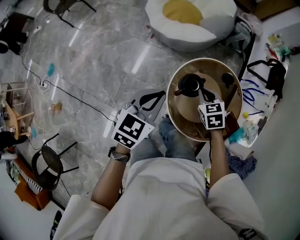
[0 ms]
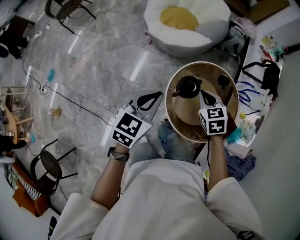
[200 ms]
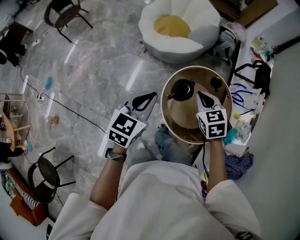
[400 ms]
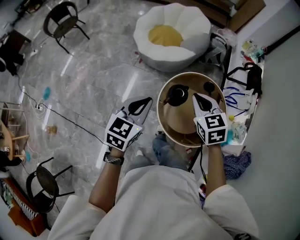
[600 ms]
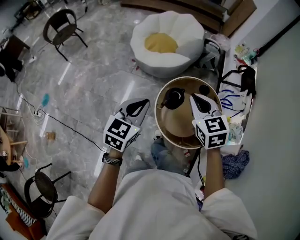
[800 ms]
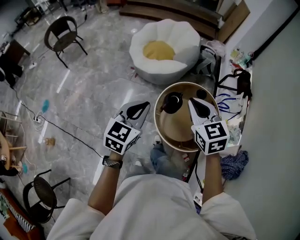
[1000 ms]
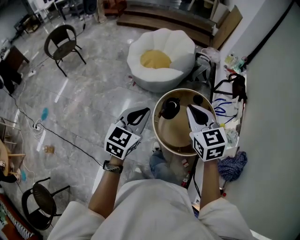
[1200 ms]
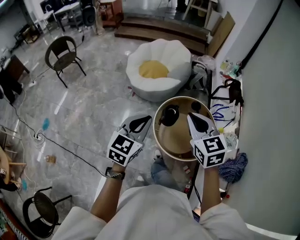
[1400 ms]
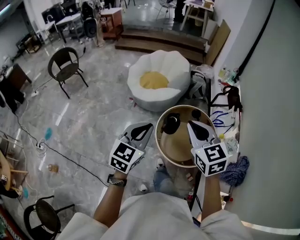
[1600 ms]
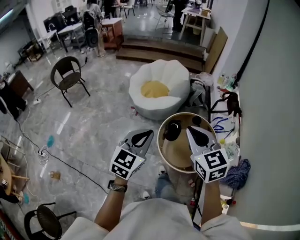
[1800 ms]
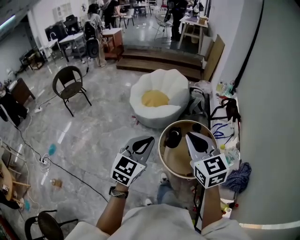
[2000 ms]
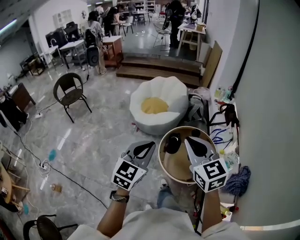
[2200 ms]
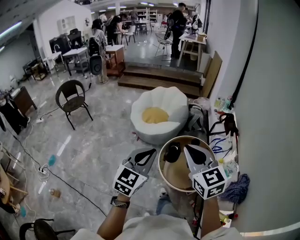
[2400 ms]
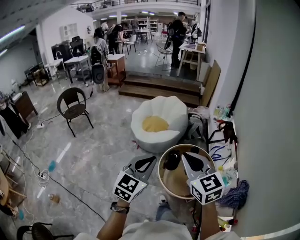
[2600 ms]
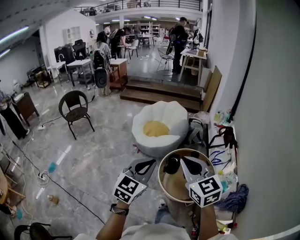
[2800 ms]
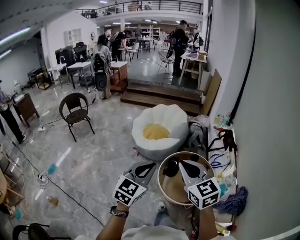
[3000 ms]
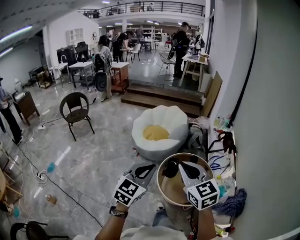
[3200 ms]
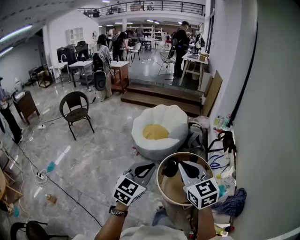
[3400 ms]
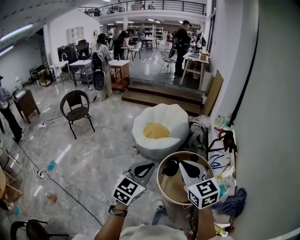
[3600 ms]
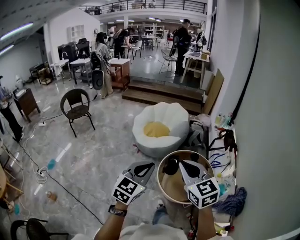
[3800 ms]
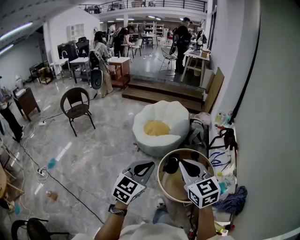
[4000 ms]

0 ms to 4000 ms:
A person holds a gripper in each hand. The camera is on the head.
0 ms to 1400 ms: The right gripper travels upward and backward by roughly 40 cm, and rotates roughly 30 degrees. Meanwhile the left gripper goes approximately 25 cm upward and backward.
1400 ms to 2600 ms: Both grippers travel together backward and upward, some 15 cm.
2600 ms to 4000 ms: The grippers make only small movements.

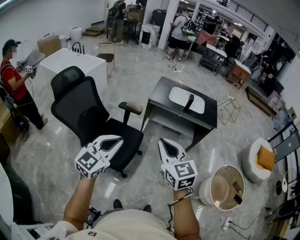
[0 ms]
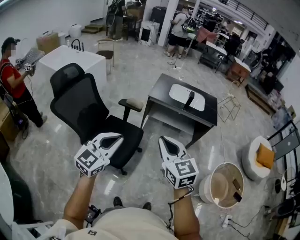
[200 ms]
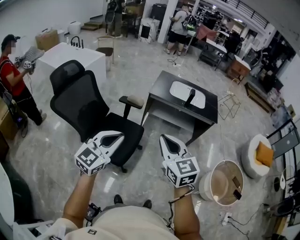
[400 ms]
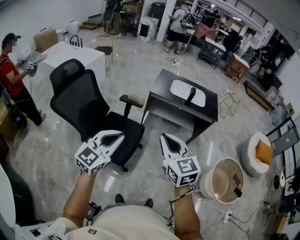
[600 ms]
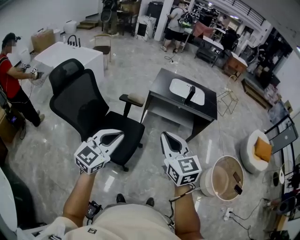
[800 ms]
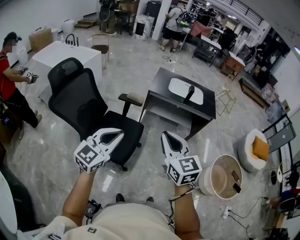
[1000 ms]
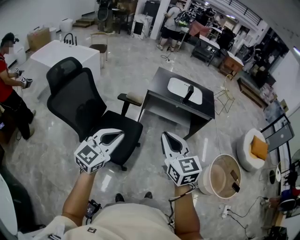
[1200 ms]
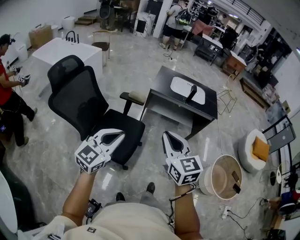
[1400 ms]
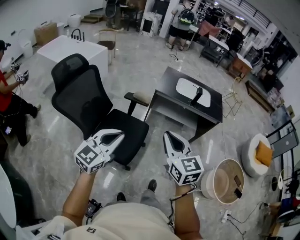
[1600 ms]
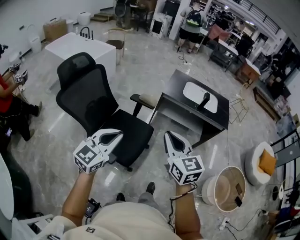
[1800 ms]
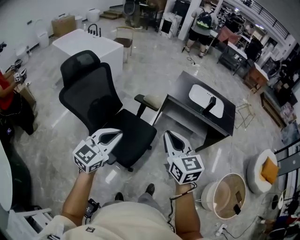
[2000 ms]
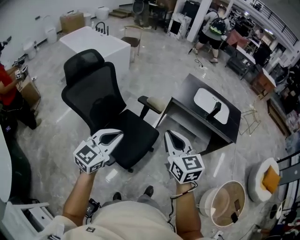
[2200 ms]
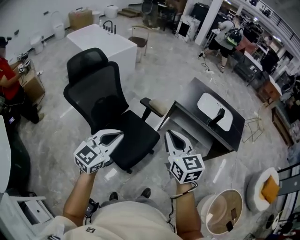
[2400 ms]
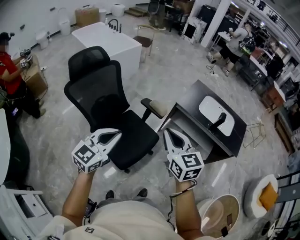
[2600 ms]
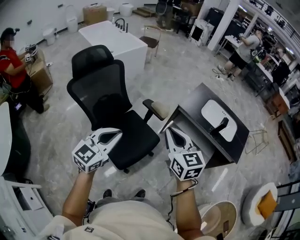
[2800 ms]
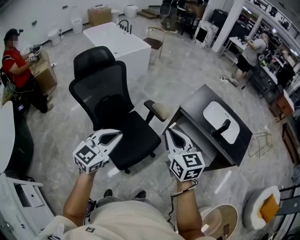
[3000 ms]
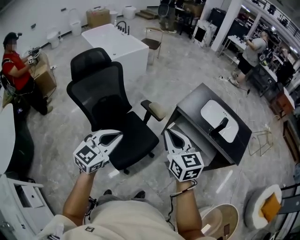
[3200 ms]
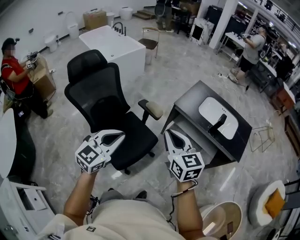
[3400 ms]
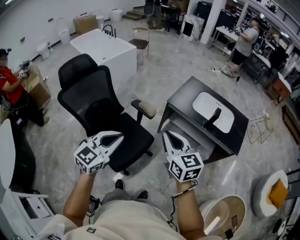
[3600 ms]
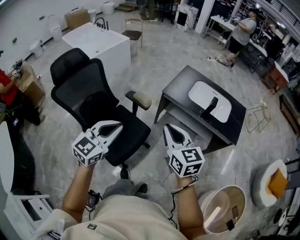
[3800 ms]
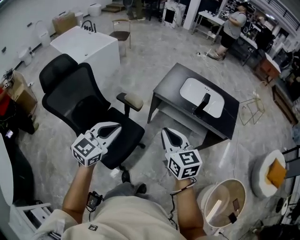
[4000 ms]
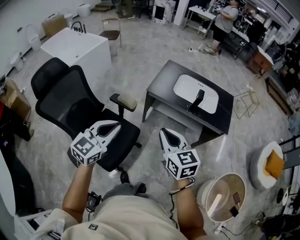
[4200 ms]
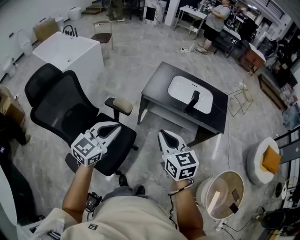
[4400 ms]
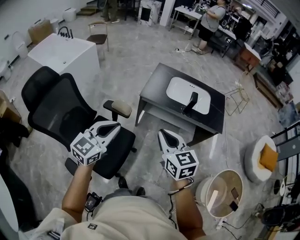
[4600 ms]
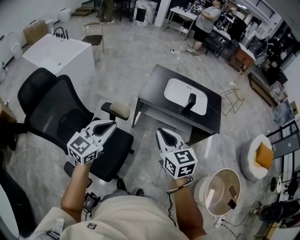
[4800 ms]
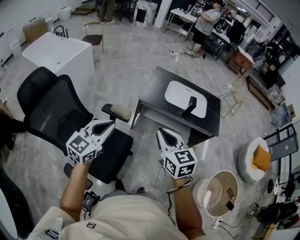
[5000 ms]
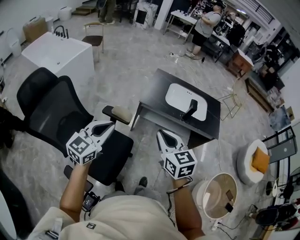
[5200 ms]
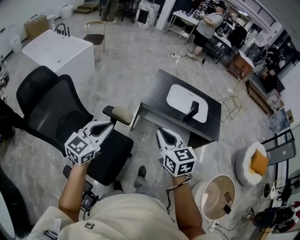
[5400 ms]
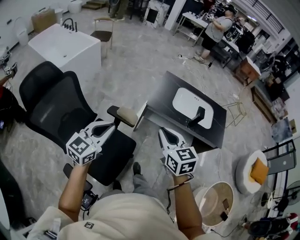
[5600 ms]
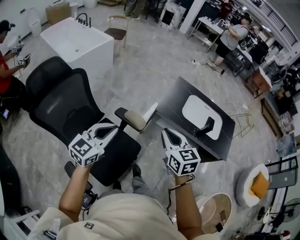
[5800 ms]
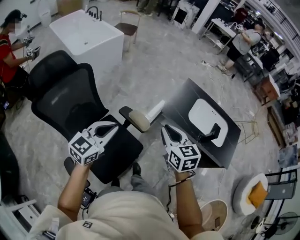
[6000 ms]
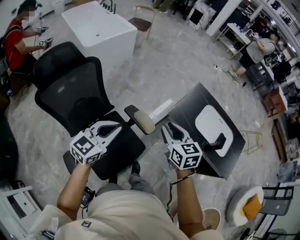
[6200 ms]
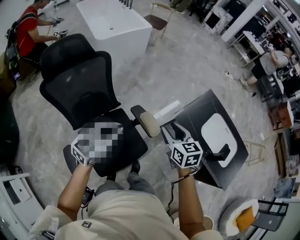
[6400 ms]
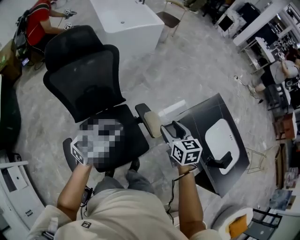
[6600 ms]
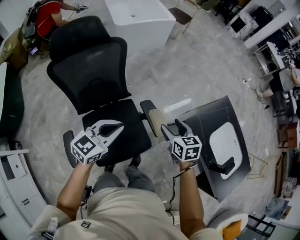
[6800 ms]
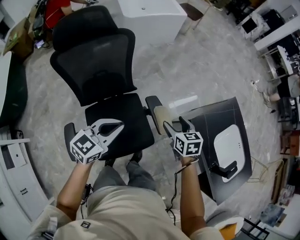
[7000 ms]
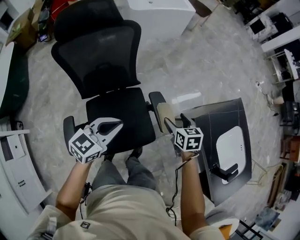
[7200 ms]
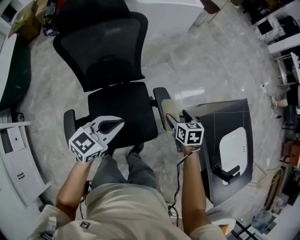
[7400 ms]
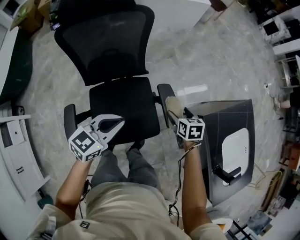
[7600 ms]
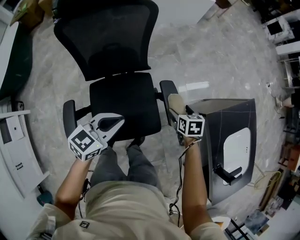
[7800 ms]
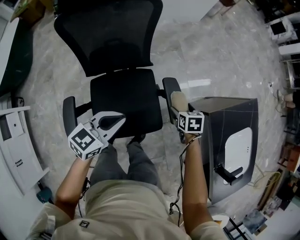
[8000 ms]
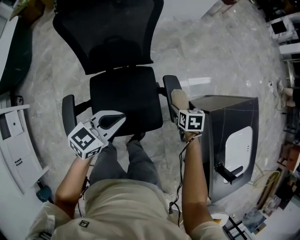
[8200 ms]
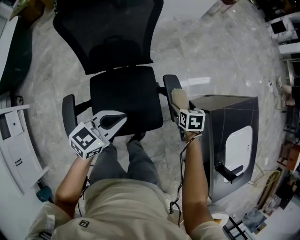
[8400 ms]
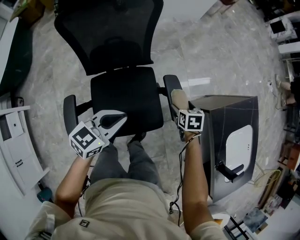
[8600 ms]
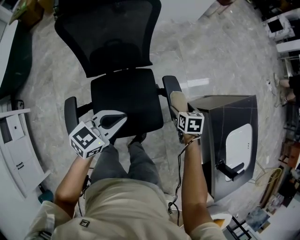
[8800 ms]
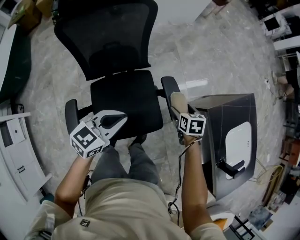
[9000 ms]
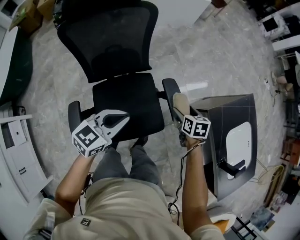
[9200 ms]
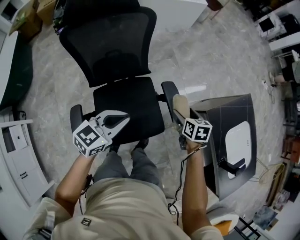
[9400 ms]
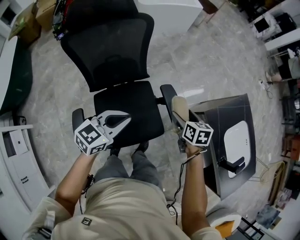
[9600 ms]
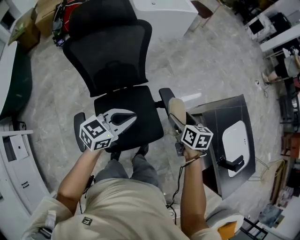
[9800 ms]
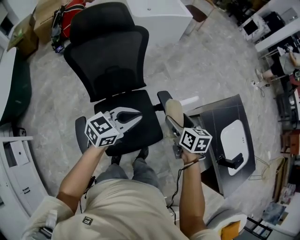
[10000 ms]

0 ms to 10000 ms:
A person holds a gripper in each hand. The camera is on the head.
0 ms to 1400 ms: The grippers both shift to the left by approximately 5 cm.
1400 ms to 2800 ms: The right gripper changes place by some 20 cm, and changes its angle by about 20 degrees, while the left gripper shifts by approximately 15 cm, and swivels about 30 degrees.
2800 ms to 4200 ms: The left gripper goes some 20 cm to the right and forward. Meanwhile the right gripper moves to the right, roughly 15 cm.
4200 ms to 5800 ms: The left gripper shifts about 20 cm to the left and forward, while the right gripper shifts about 20 cm forward and to the left.
5800 ms to 7200 ms: The right gripper goes approximately 25 cm downward, turns by roughly 40 degrees, and opens up; the left gripper is displaced downward by some 15 cm, and rotates approximately 30 degrees.
7200 ms to 8600 ms: The right gripper heads downward, covering roughly 10 cm. Meanwhile the left gripper is displaced downward by some 5 cm.
8600 ms to 10000 ms: The left gripper goes about 10 cm upward; the right gripper travels upward by about 20 cm, and swivels roughly 30 degrees.

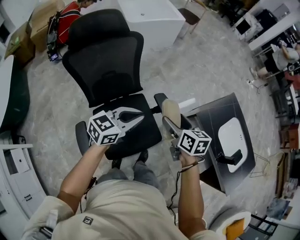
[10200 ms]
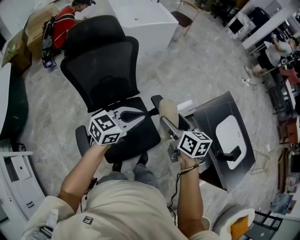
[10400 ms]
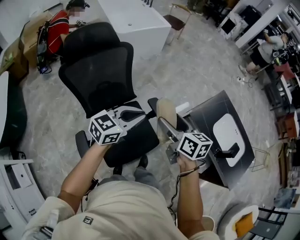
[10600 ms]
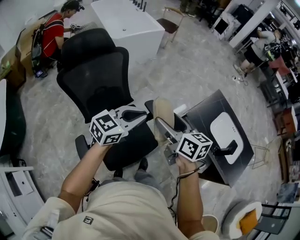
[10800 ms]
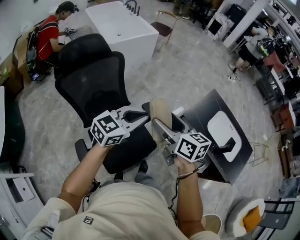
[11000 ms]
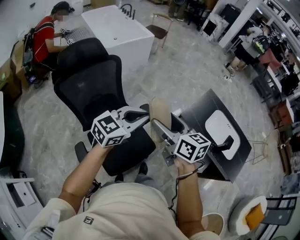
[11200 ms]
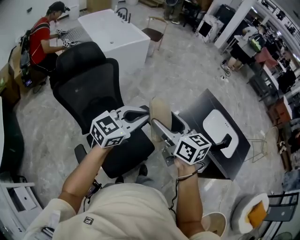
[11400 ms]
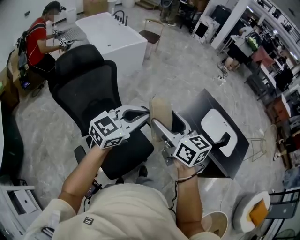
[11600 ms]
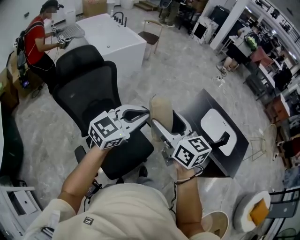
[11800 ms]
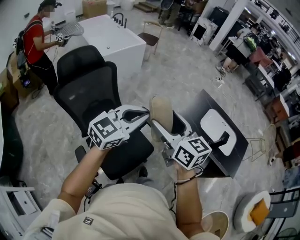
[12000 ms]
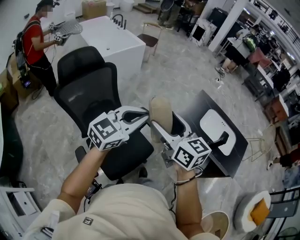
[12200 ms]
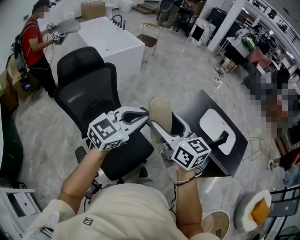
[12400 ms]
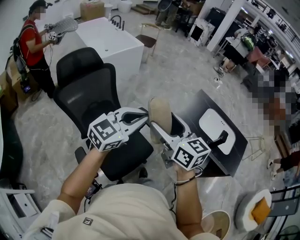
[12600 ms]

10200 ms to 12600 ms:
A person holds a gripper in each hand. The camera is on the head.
10200 ms to 11400 ms: The left gripper heads upward and to the right, covering about 15 cm, and changes its angle by roughly 20 degrees. The right gripper moves upward and backward, about 20 cm, and changes its angle by approximately 20 degrees.
11400 ms to 12600 ms: The left gripper moves roughly 5 cm, while the right gripper ends up some 5 cm from where it was.

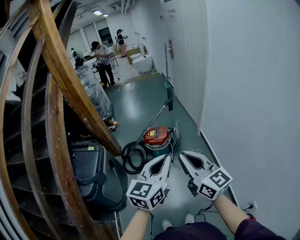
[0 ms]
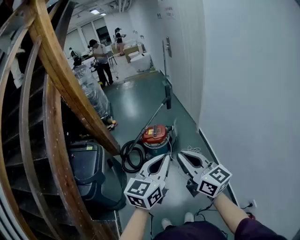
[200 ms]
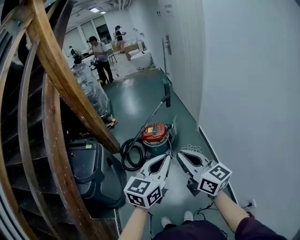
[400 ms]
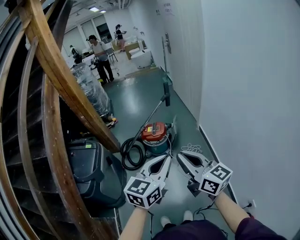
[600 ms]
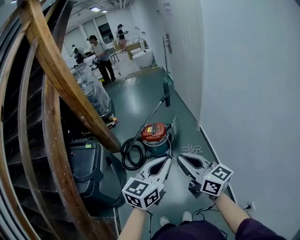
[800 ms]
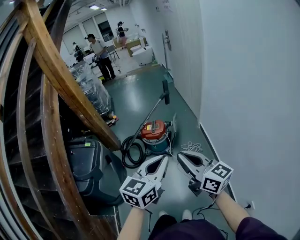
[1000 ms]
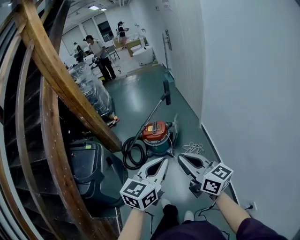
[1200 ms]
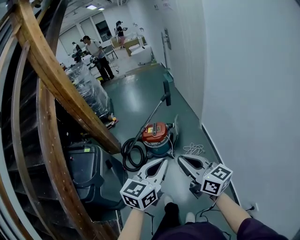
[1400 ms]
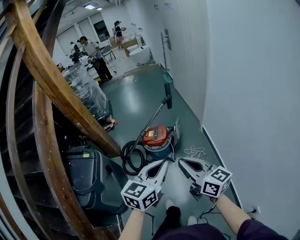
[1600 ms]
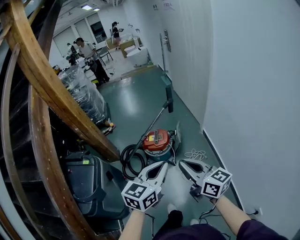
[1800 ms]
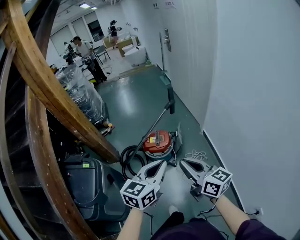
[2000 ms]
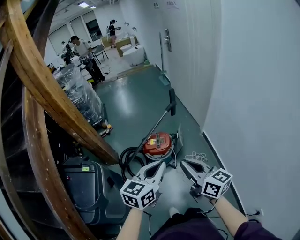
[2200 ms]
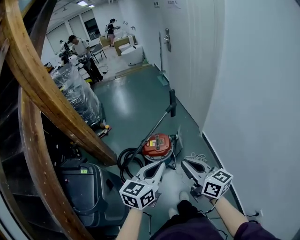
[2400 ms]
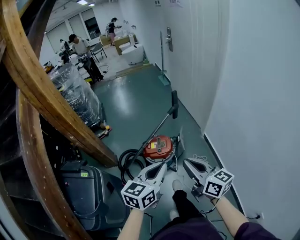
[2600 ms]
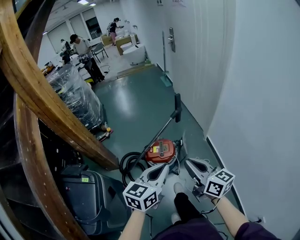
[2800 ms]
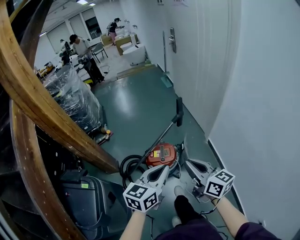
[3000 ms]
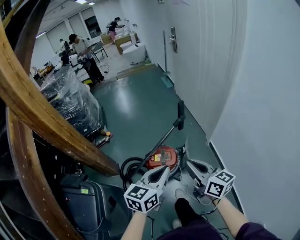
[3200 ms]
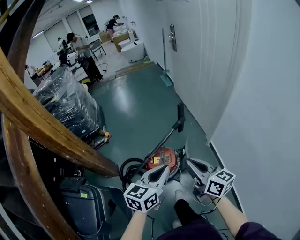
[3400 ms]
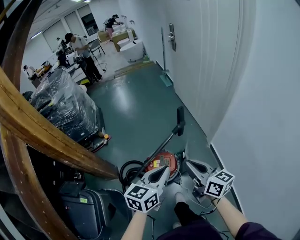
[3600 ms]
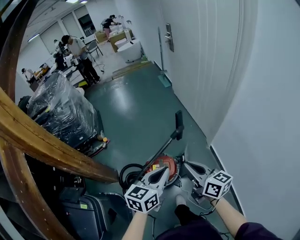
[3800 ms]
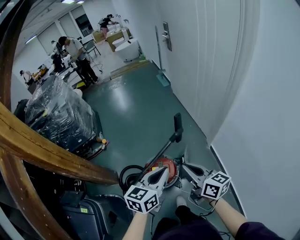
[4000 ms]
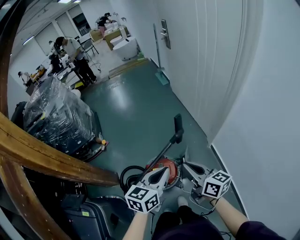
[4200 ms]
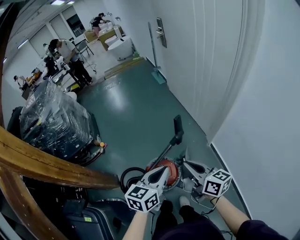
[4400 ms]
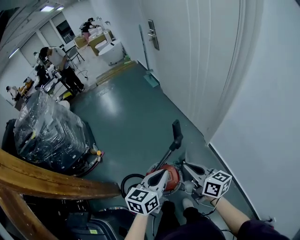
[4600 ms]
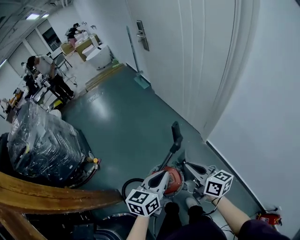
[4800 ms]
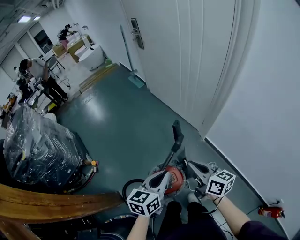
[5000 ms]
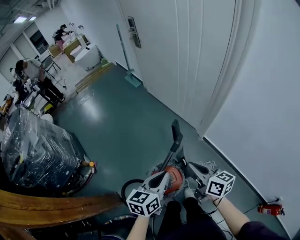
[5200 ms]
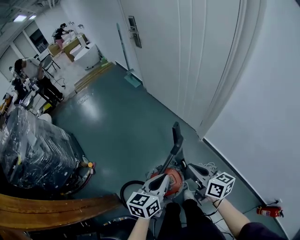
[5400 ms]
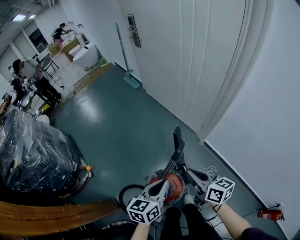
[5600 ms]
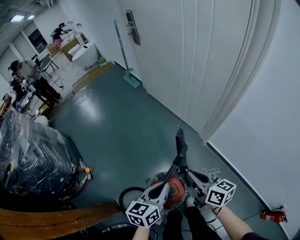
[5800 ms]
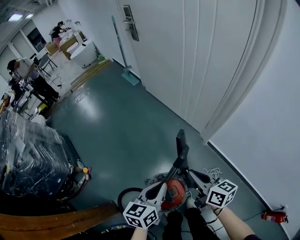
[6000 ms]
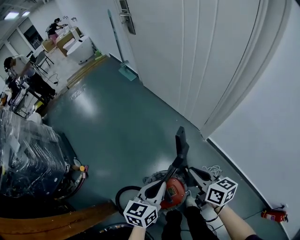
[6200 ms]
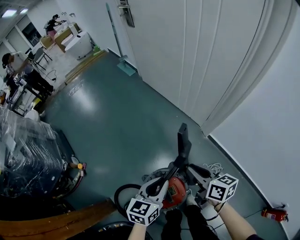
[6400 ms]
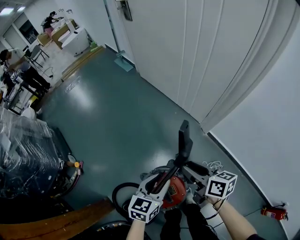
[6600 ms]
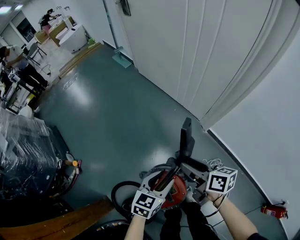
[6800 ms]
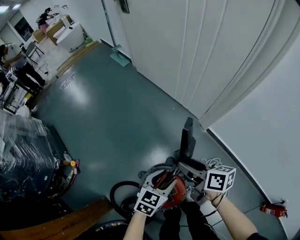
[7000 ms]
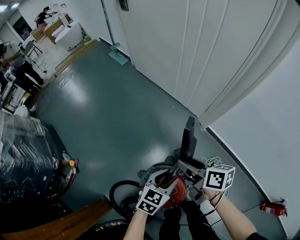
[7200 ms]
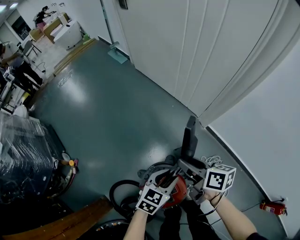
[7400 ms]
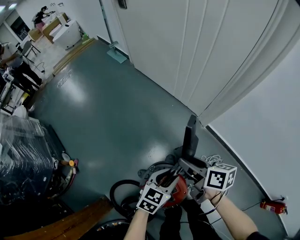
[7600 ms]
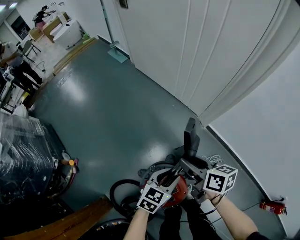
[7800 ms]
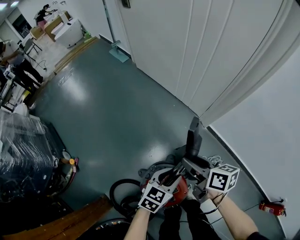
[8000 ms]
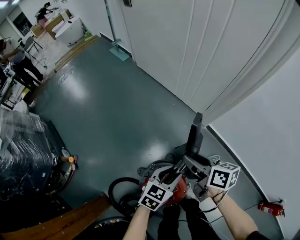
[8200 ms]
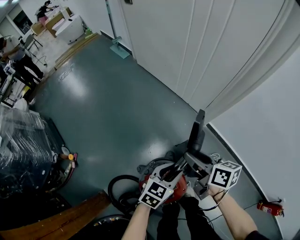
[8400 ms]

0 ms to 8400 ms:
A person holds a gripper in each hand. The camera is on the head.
0 ms to 1400 ms: The left gripper goes approximately 10 cm forward and downward. Meanwhile the right gripper moves forward, downward and to the right, some 10 cm.
1400 ms to 2800 ms: The right gripper is displaced forward by roughly 25 cm. Meanwhile the left gripper goes approximately 30 cm forward and to the left.
2800 ms to 4200 ms: The grippers both shift forward by approximately 25 cm.
4200 ms to 5600 ms: The right gripper is displaced forward and downward by roughly 15 cm, and rotates approximately 20 degrees. The left gripper heads forward, downward and to the left, covering some 15 cm.
5600 ms to 7000 ms: The right gripper moves downward and forward, roughly 20 cm, and opens up. Meanwhile the left gripper travels downward by some 25 cm, turns by approximately 30 degrees, and opens.
7000 ms to 8400 ms: The grippers stay close to where they were, moving slightly.
